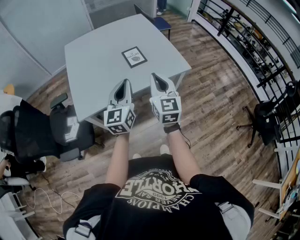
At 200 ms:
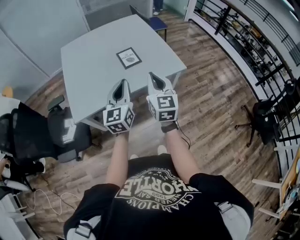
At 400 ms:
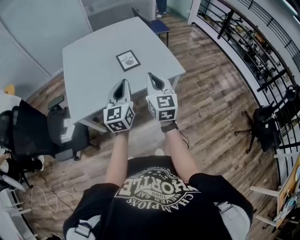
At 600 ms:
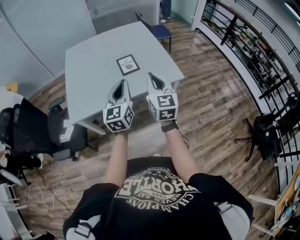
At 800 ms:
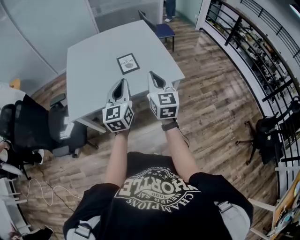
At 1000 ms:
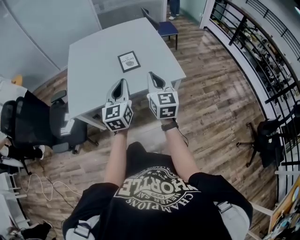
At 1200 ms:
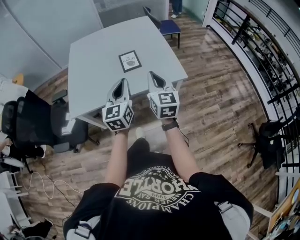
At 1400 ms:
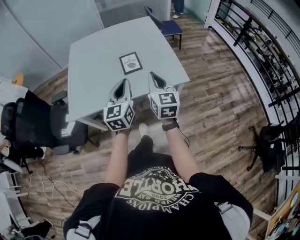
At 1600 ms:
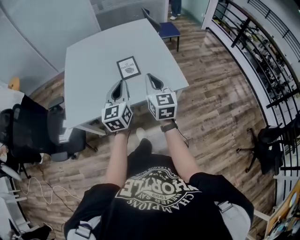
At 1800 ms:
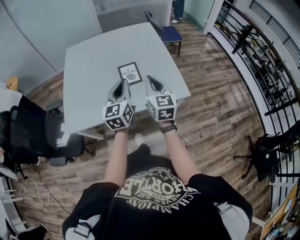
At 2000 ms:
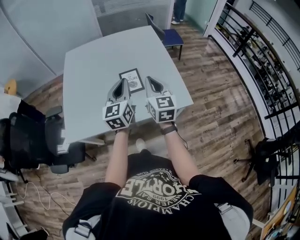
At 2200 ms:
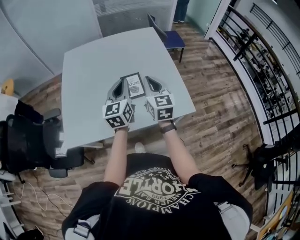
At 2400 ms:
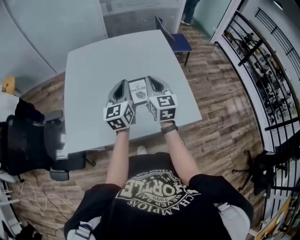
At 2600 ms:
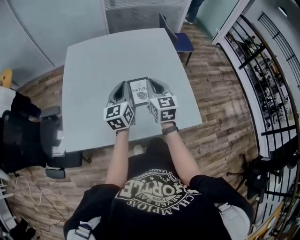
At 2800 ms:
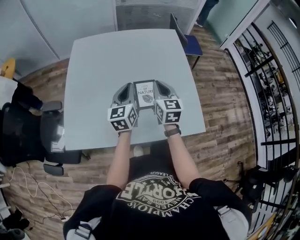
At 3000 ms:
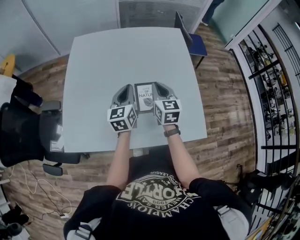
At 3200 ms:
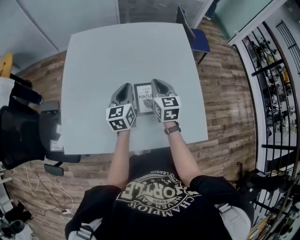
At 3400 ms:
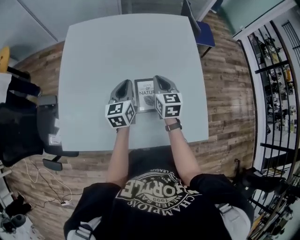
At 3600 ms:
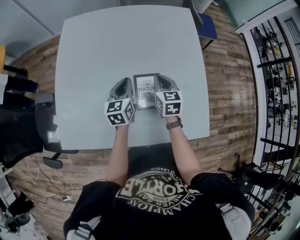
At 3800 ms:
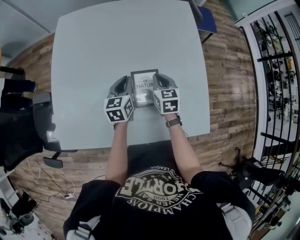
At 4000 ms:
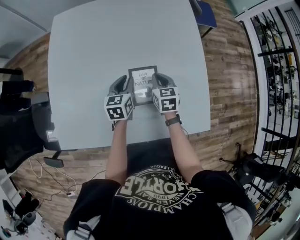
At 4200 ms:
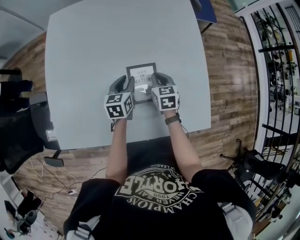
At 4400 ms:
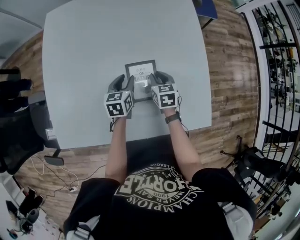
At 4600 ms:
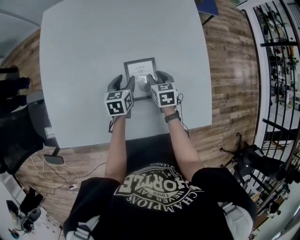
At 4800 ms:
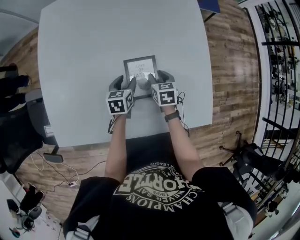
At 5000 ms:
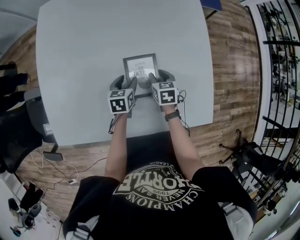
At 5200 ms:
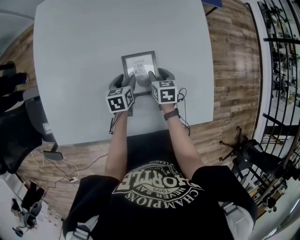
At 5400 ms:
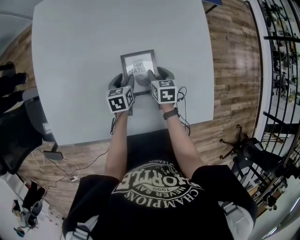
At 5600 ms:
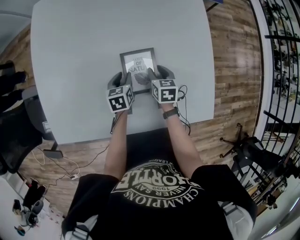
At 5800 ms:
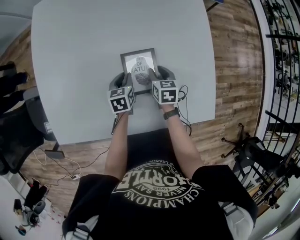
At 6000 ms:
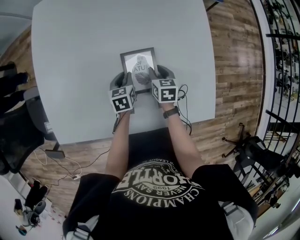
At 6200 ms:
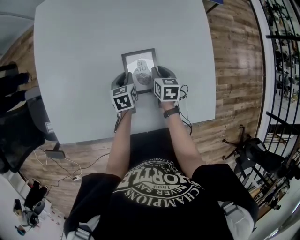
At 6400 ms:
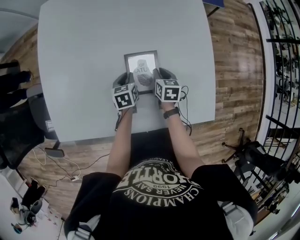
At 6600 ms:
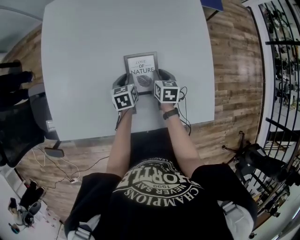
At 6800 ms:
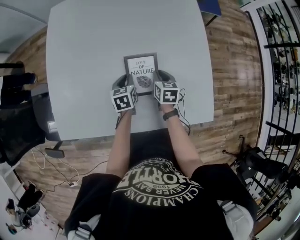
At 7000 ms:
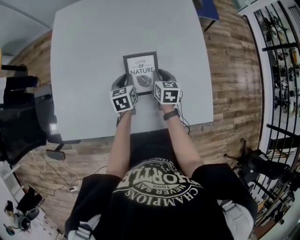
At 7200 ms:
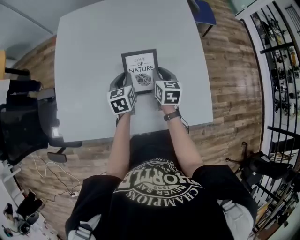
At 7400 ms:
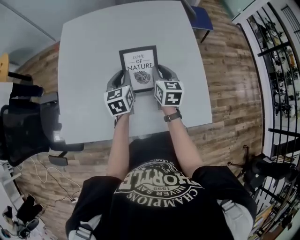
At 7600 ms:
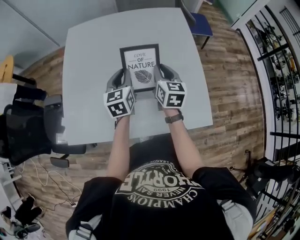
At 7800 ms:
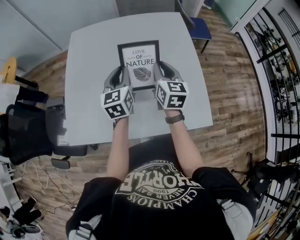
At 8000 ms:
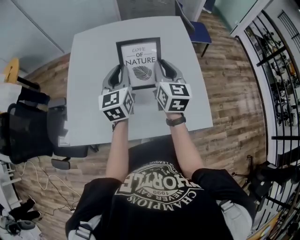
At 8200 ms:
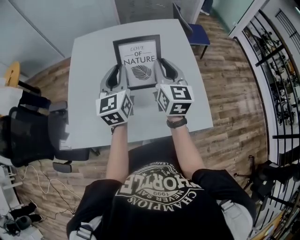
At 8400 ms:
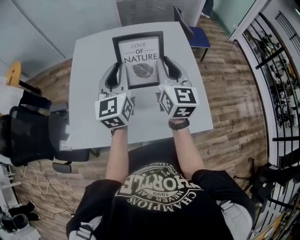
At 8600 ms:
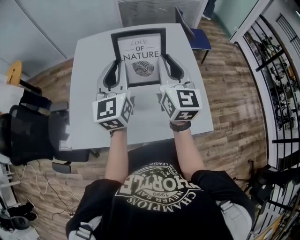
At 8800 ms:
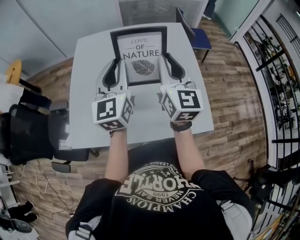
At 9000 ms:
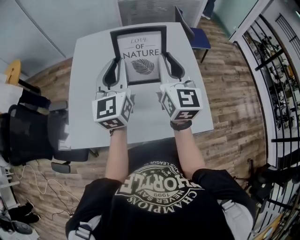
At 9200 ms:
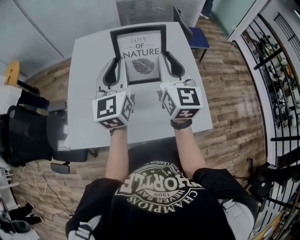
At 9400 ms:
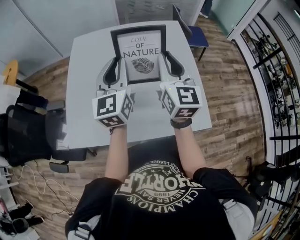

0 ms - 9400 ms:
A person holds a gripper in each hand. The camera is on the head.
0 ms - 1600 ms: Both grippers travel together forward and to the right, roughly 20 cm.
1600 ms - 3200 ms: Both grippers are carried forward, about 40 cm.
3200 ms - 4800 ms: The two grippers go approximately 25 cm downward. The right gripper points its fingers approximately 30 degrees further downward, and opens up. The left gripper tips its fingers downward by about 30 degrees, and opens its fingers.
4800 ms - 6200 ms: The left gripper closes; the right gripper closes.
6200 ms - 7800 ms: Both grippers move upward, about 35 cm. The right gripper angles its fingers upward, by approximately 40 degrees. The left gripper angles its fingers upward, by about 40 degrees.
7800 ms - 9400 ms: The two grippers go about 15 cm upward. The right gripper changes its angle by about 20 degrees.

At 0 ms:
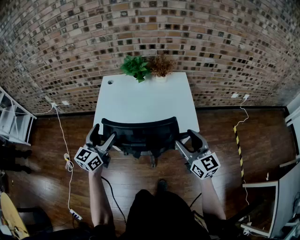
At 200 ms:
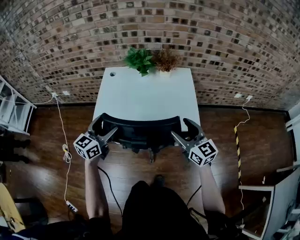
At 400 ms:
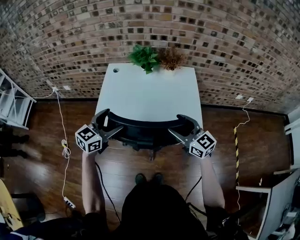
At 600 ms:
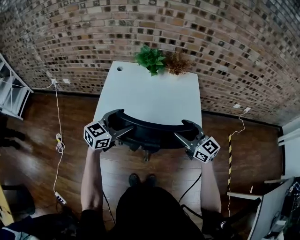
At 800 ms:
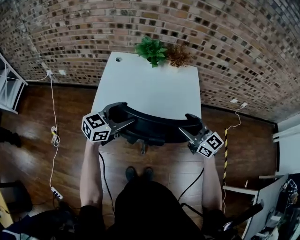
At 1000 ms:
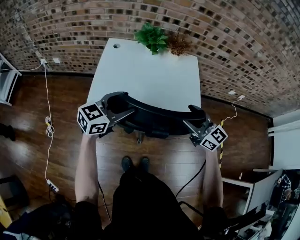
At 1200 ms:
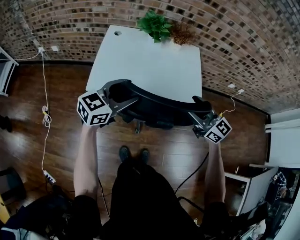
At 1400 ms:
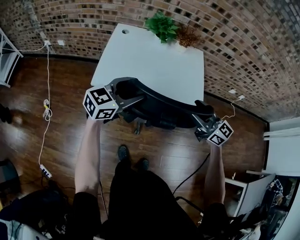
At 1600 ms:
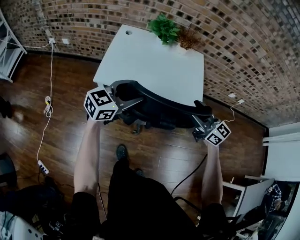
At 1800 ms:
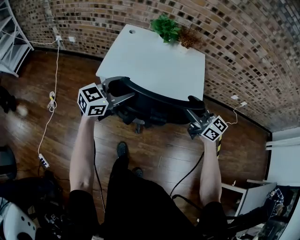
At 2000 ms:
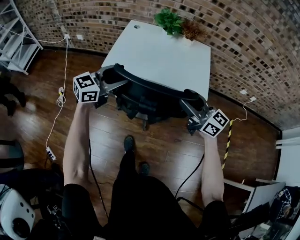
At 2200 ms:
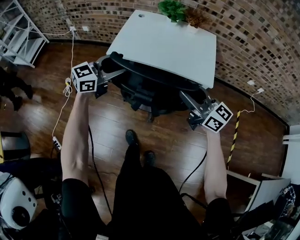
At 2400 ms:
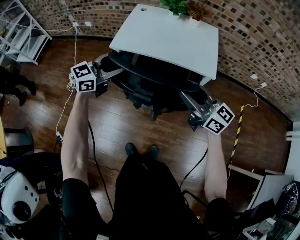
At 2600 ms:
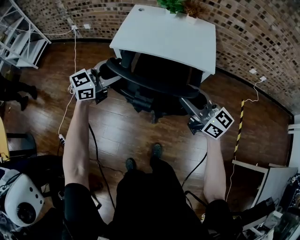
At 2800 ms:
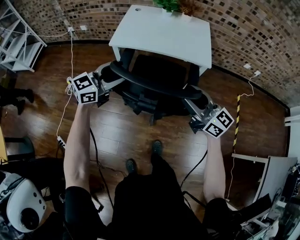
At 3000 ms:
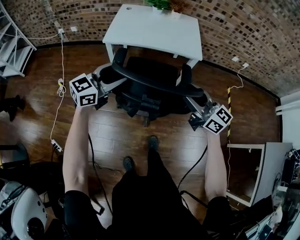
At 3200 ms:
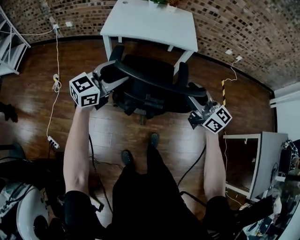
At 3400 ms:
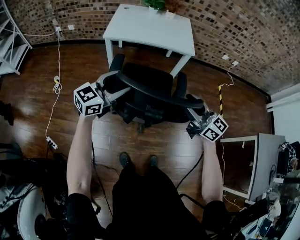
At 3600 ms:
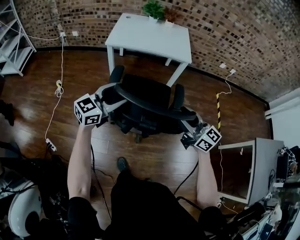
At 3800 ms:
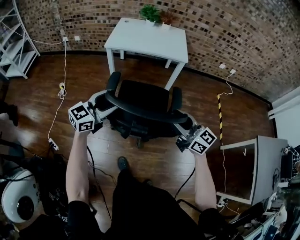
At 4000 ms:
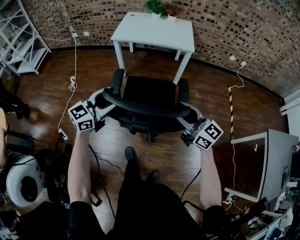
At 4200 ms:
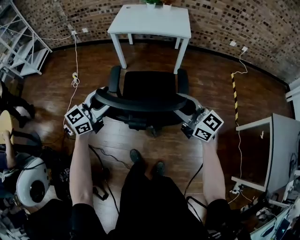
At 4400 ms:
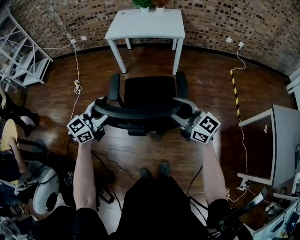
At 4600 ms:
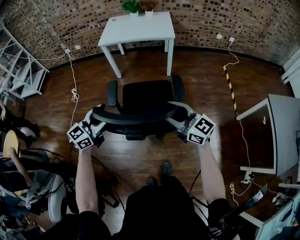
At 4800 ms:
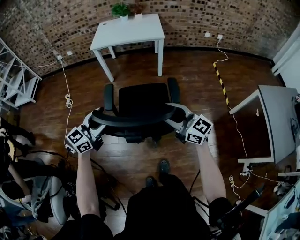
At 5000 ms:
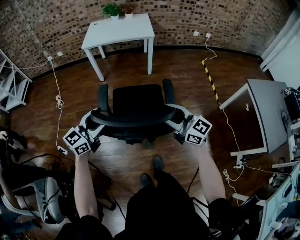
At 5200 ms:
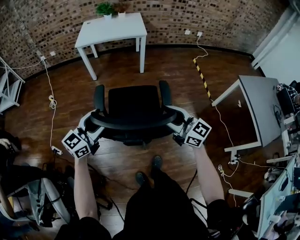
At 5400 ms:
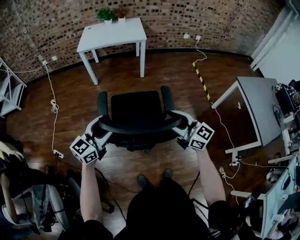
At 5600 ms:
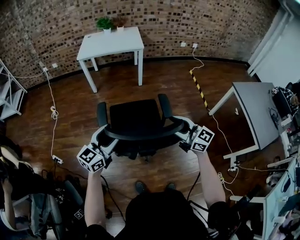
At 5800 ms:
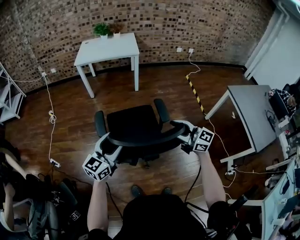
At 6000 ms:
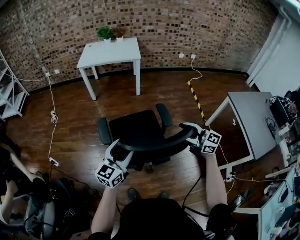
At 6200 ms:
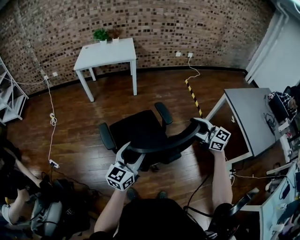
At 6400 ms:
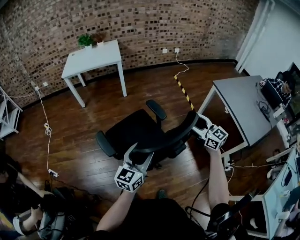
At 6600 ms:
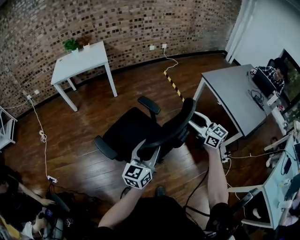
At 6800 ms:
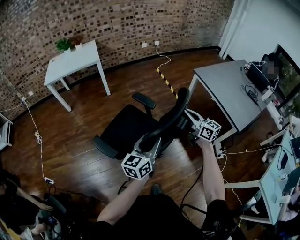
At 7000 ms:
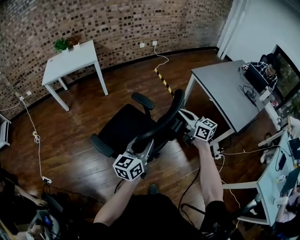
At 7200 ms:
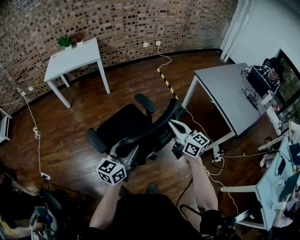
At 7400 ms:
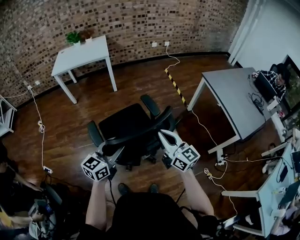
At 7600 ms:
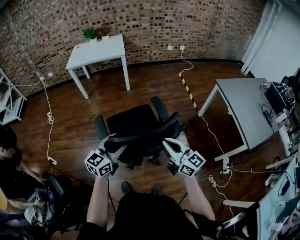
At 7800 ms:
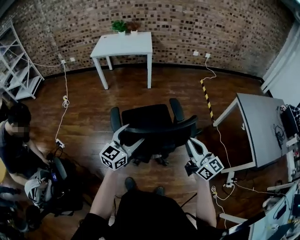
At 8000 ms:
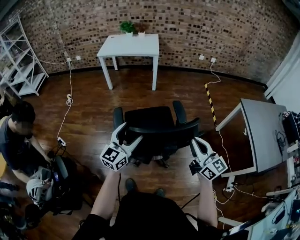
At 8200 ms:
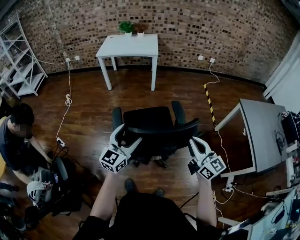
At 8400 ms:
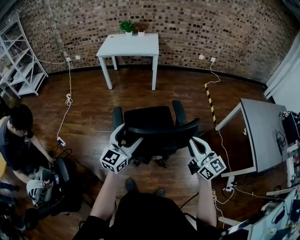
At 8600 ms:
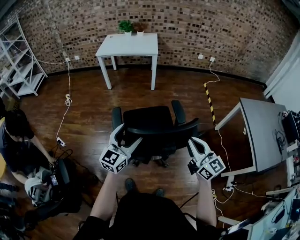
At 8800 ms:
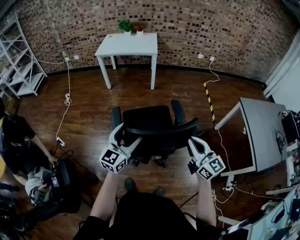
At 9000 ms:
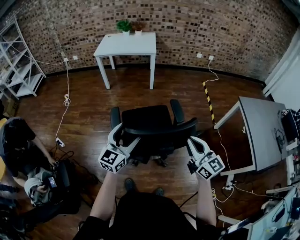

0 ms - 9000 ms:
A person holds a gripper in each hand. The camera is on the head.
0 ms - 1600 ms: The left gripper rotates approximately 30 degrees, and closes its fingers, while the right gripper moves to the left and downward, some 10 cm, and swivels roughly 20 degrees.
1600 ms - 3000 ms: The two grippers go about 30 cm backward.
3000 ms - 4400 ms: The two grippers travel together, backward, roughly 50 cm.
4400 ms - 6000 ms: The left gripper travels backward by some 40 cm; the right gripper is displaced backward and downward by approximately 40 cm.
6000 ms - 7600 ms: The left gripper heads to the right, covering about 15 cm, while the right gripper is displaced to the right and backward by roughly 15 cm, changes its angle by roughly 20 degrees, and closes its fingers.
7600 ms - 9000 ms: Both grippers travel together upward, some 5 cm. The left gripper swivels about 20 degrees, and opens.

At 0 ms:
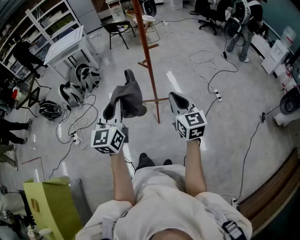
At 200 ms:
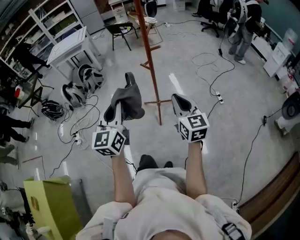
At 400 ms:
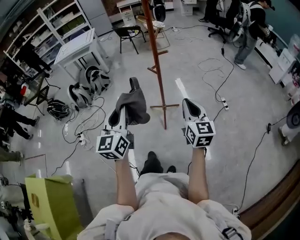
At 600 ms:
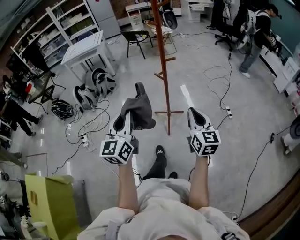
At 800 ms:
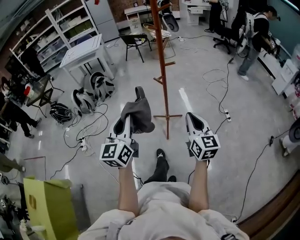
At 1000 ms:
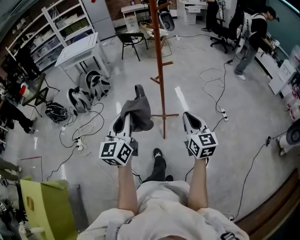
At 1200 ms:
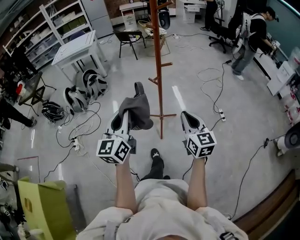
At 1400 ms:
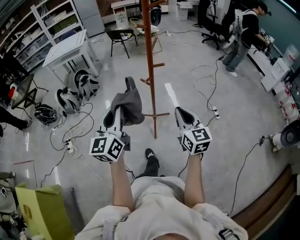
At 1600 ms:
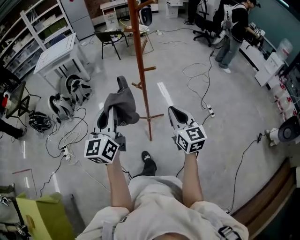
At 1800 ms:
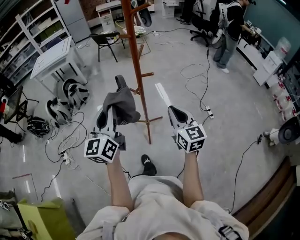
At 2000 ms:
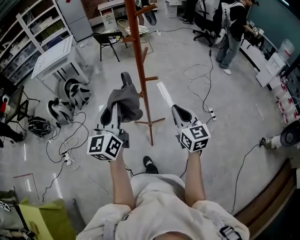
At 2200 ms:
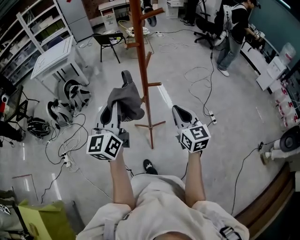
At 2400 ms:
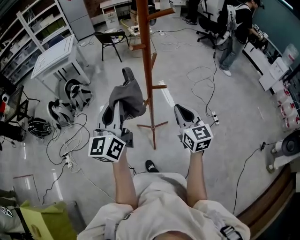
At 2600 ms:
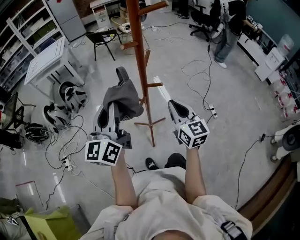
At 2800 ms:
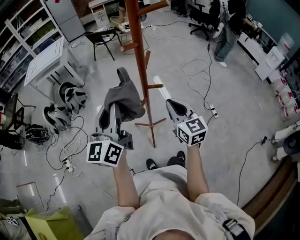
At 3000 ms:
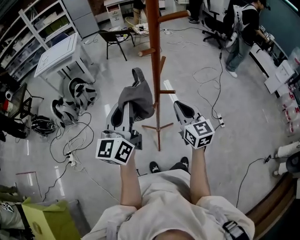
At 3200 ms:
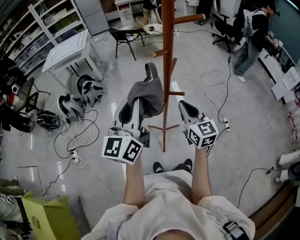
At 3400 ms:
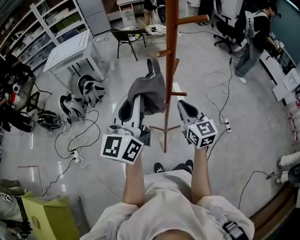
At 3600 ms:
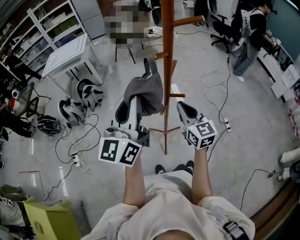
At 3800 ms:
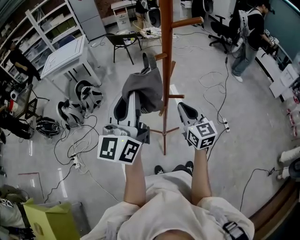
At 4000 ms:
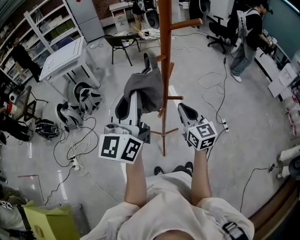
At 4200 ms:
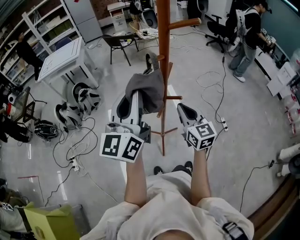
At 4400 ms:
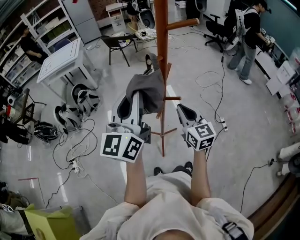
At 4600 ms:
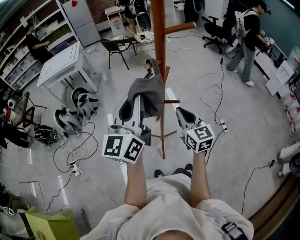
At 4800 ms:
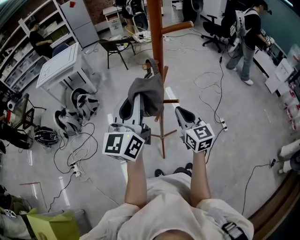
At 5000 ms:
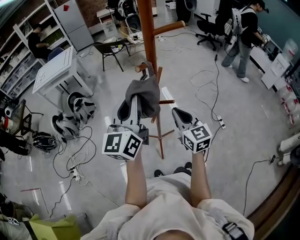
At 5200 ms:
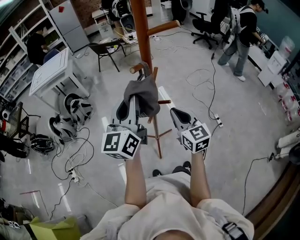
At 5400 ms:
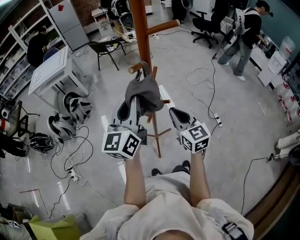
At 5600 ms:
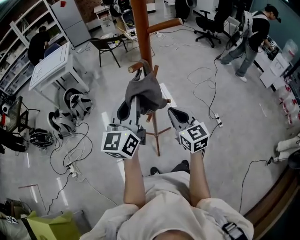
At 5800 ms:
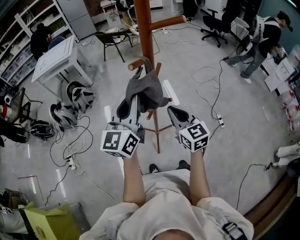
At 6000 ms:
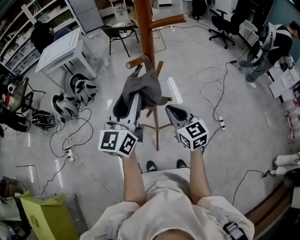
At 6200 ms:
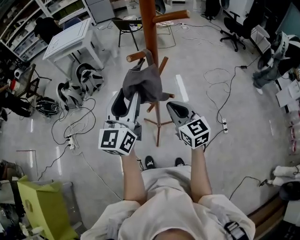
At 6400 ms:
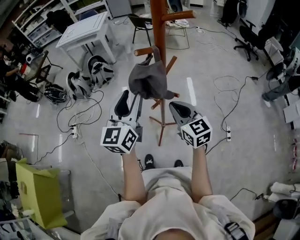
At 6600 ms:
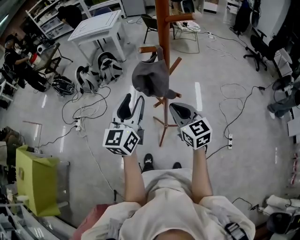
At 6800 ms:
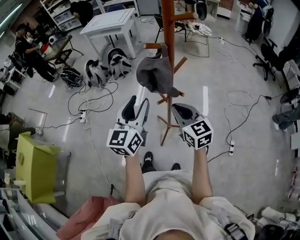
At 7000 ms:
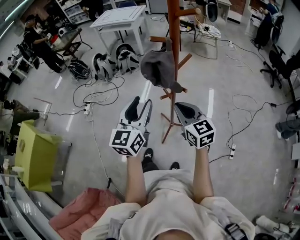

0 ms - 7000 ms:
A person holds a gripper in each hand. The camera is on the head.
0 ms - 1400 ms: The grippers both shift forward by about 5 cm.
1400 ms - 2800 ms: The two grippers go approximately 15 cm forward.
2800 ms - 4200 ms: The left gripper shifts some 10 cm upward.
4200 ms - 5600 ms: The left gripper is displaced downward by some 5 cm.
5600 ms - 7000 ms: The right gripper turns by about 40 degrees. The left gripper shifts by some 10 cm, changes its angle by approximately 30 degrees, and opens its fingers.
